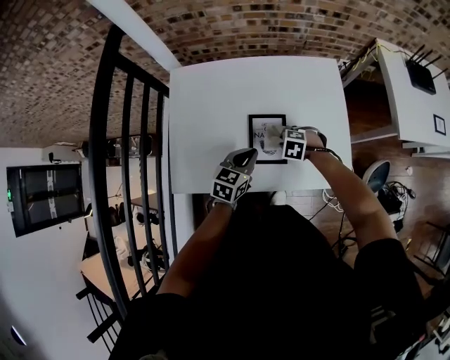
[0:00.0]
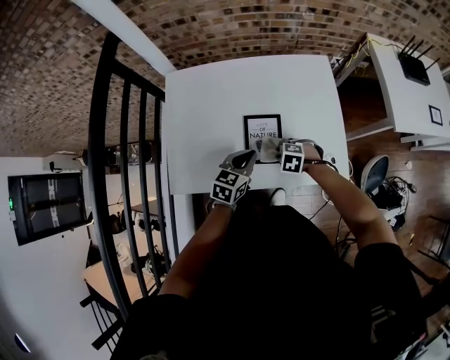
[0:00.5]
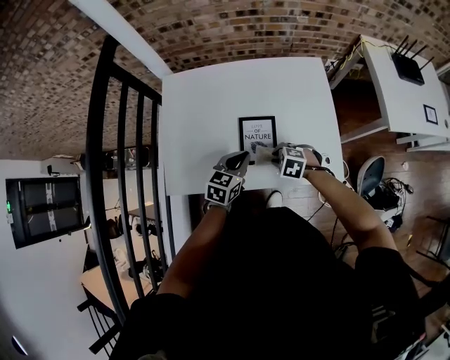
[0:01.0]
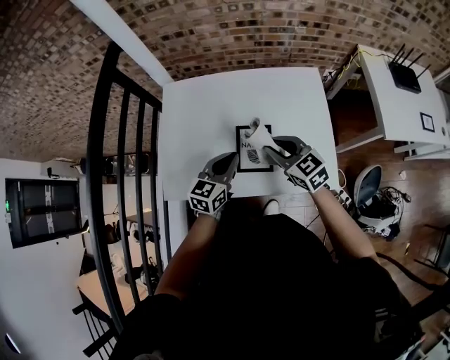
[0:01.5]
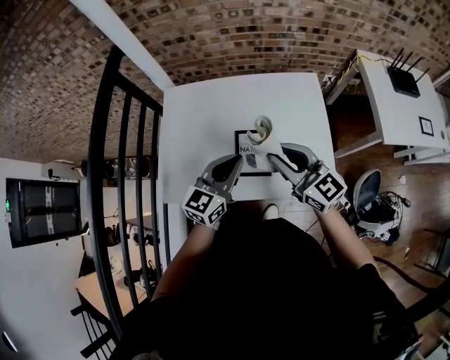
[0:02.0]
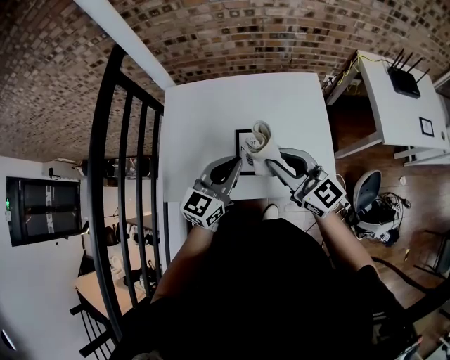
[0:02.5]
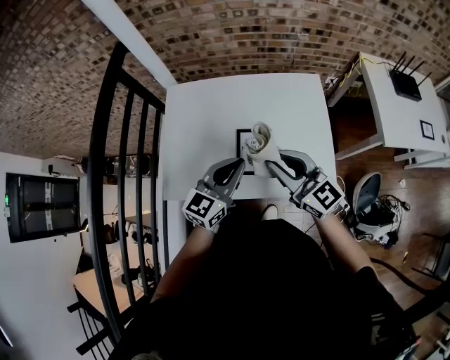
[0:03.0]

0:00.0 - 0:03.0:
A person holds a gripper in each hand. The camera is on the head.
0:00.0 - 0:01.5: The left gripper goes some 10 cm upward; the right gripper is displaced upward by approximately 20 cm, and angles its fingers upward, by approximately 50 degrees.
0:01.5 - 0:03.0: The left gripper travels upward by some 10 cm. The right gripper heads upward and backward, covering about 15 cm, and rotates roughly 30 degrees.

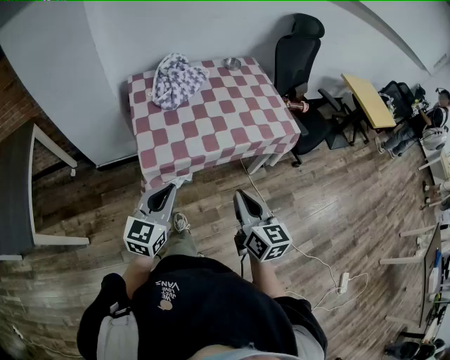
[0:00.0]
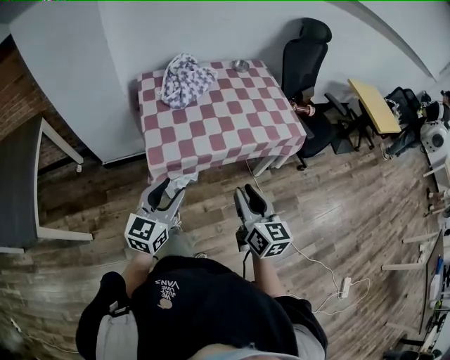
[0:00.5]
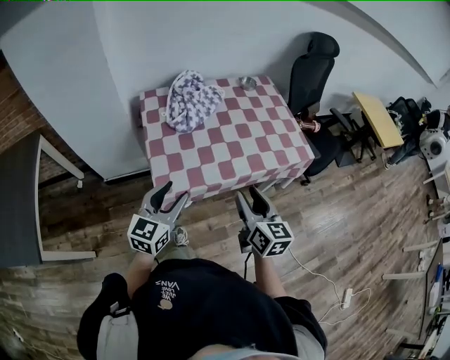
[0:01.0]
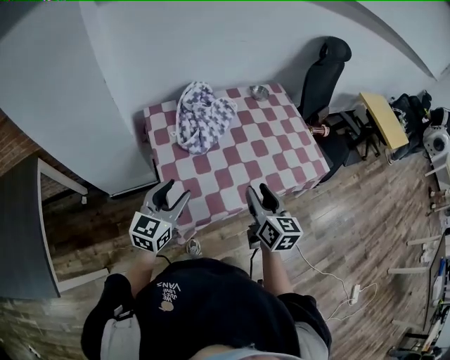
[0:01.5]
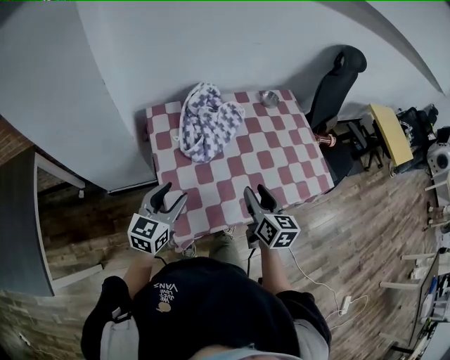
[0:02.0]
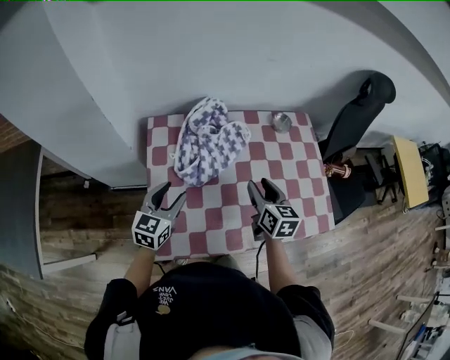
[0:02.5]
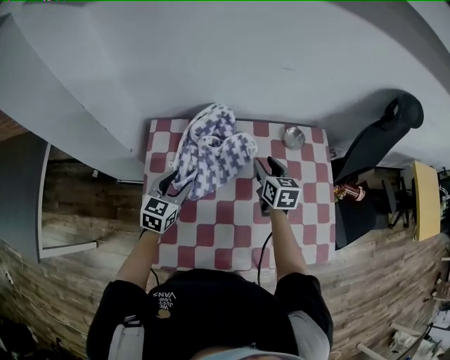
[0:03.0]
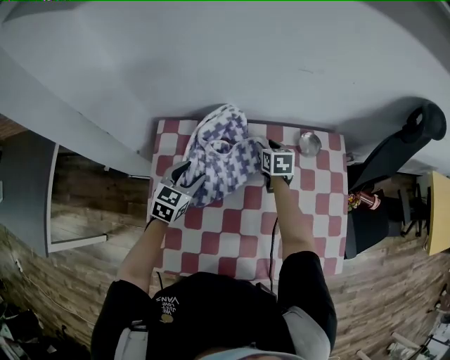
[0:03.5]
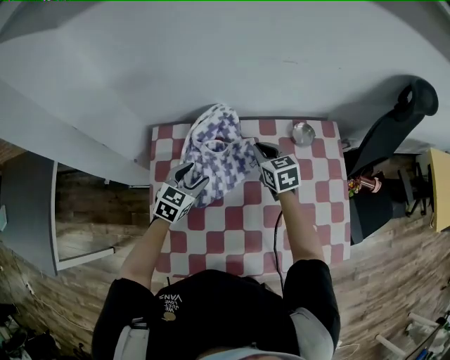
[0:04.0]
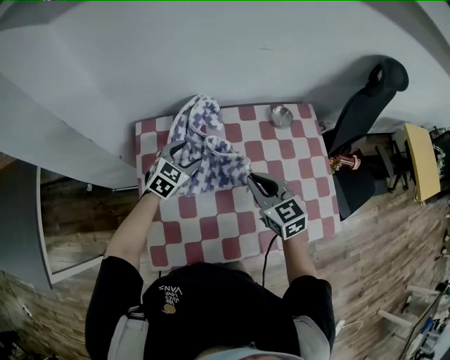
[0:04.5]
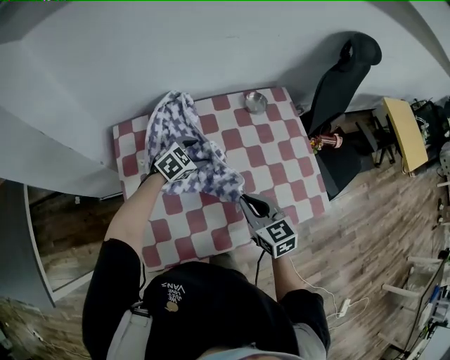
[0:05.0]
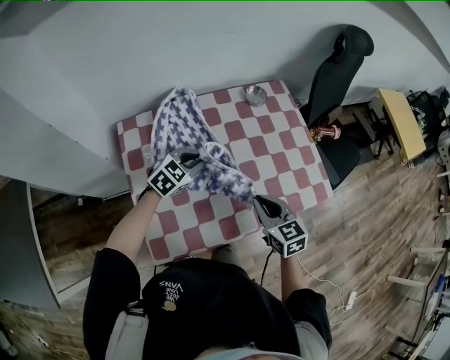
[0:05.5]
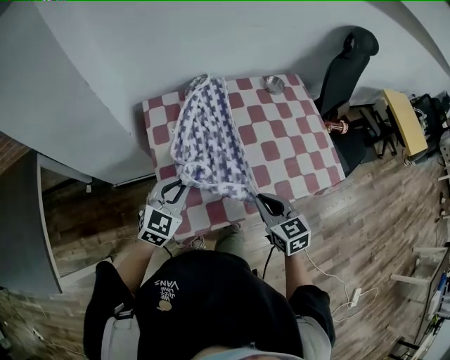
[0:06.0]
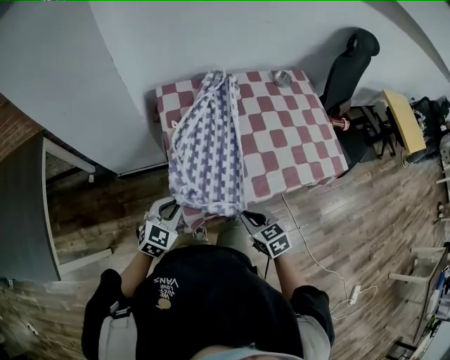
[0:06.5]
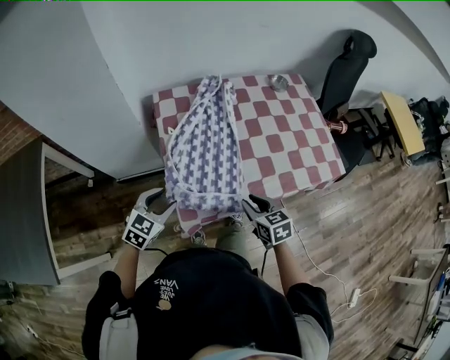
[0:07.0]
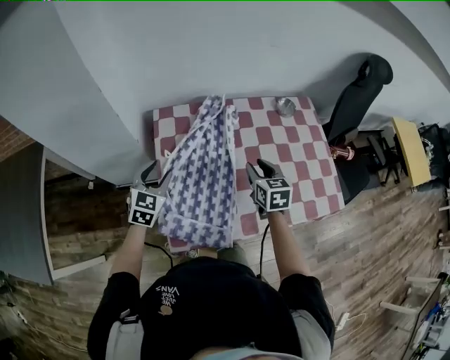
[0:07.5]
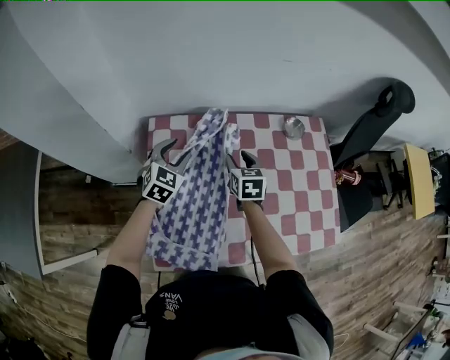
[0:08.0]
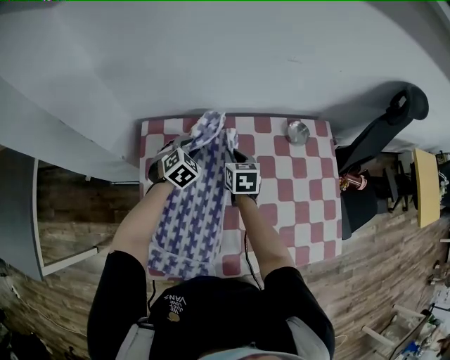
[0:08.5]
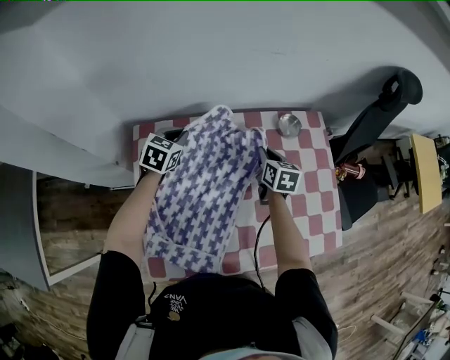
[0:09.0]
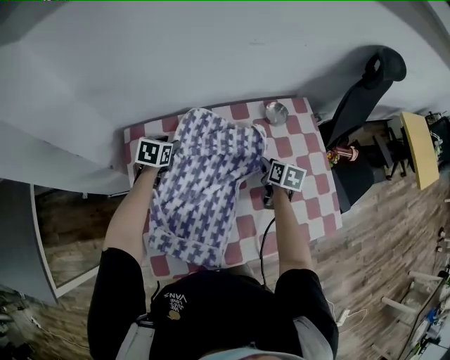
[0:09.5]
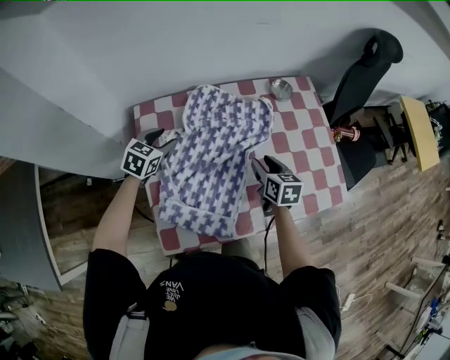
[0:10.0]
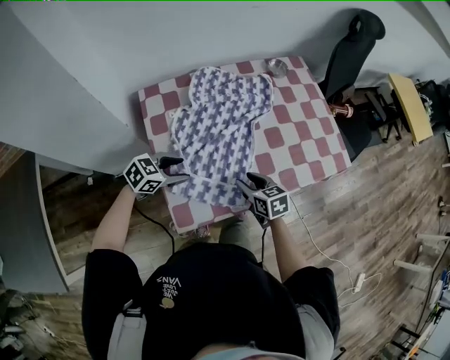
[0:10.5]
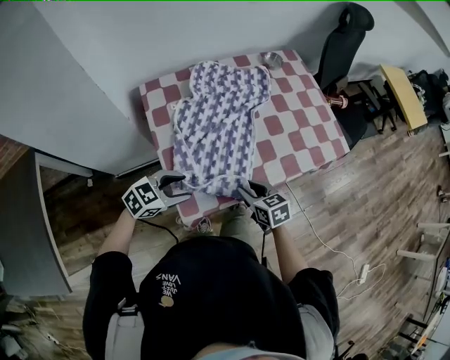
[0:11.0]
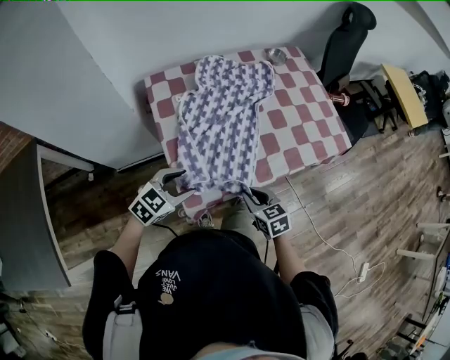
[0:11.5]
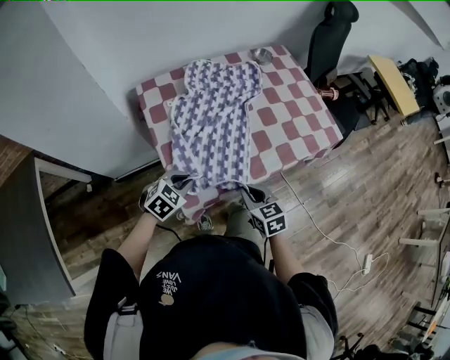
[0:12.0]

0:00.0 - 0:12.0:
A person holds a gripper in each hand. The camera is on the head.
0:00.0 - 0:02.0: The left gripper heads forward and to the left, covering some 30 cm, and opens, while the right gripper is displaced forward by approximately 30 cm, and opens.
0:02.0 - 0:04.0: The left gripper goes approximately 25 cm forward and downward, and rotates approximately 20 degrees; the right gripper shifts about 35 cm forward, rotates roughly 40 degrees, and closes its fingers.
0:04.0 - 0:06.0: The left gripper heads backward, covering roughly 25 cm, rotates roughly 20 degrees, and closes up. Meanwhile the right gripper travels backward by roughly 40 cm.
0:06.0 - 0:08.0: The two grippers go some 30 cm forward. The left gripper opens up. The right gripper opens.
0:08.0 - 0:10.0: The left gripper is displaced backward by some 5 cm, rotates some 20 degrees, and closes, then opens again. The right gripper moves backward and to the right, approximately 15 cm, and closes, then reopens.
0:10.0 - 0:12.0: The two grippers go roughly 30 cm backward. The right gripper closes. Meanwhile the left gripper changes its angle by some 30 degrees, and closes its fingers.

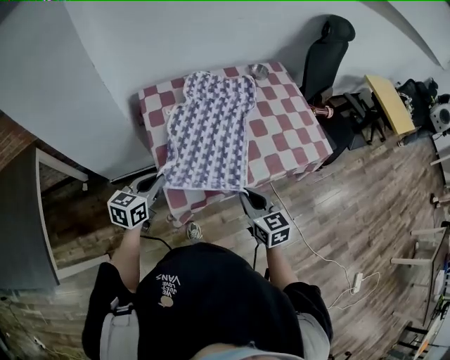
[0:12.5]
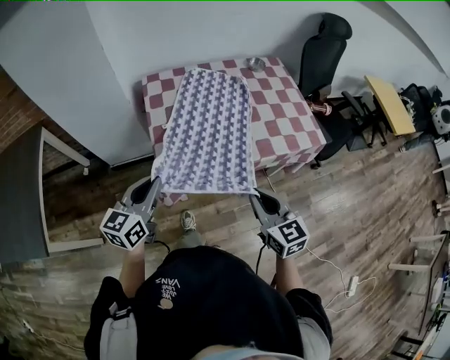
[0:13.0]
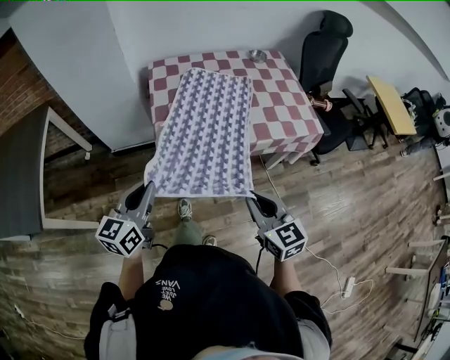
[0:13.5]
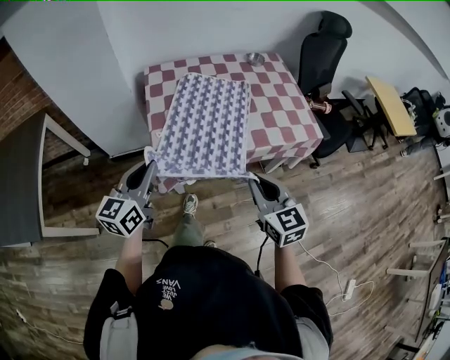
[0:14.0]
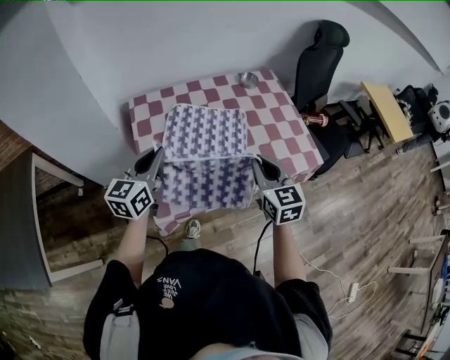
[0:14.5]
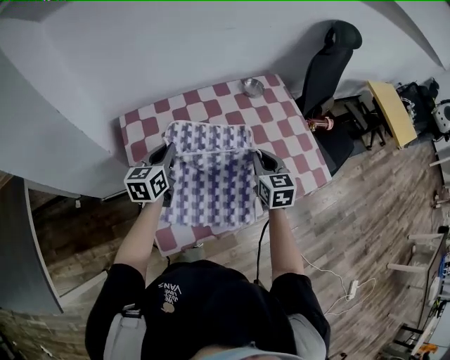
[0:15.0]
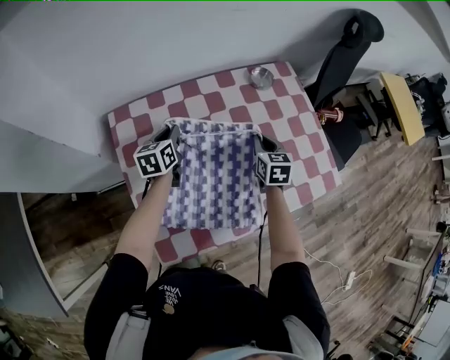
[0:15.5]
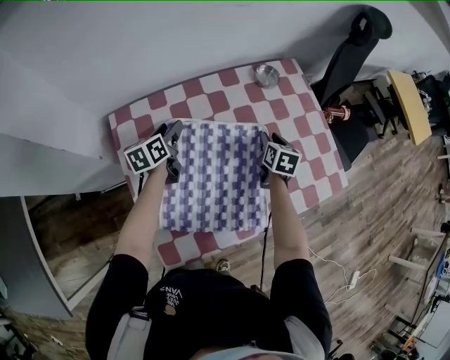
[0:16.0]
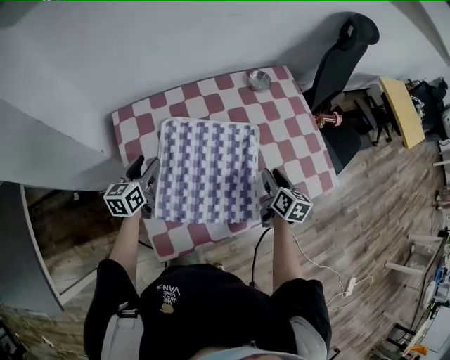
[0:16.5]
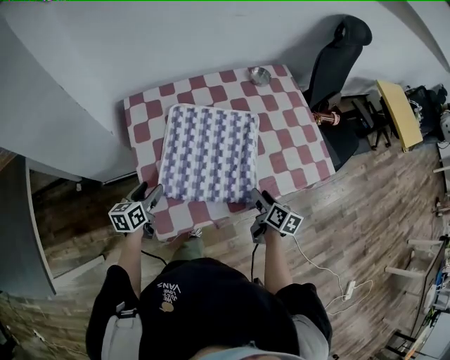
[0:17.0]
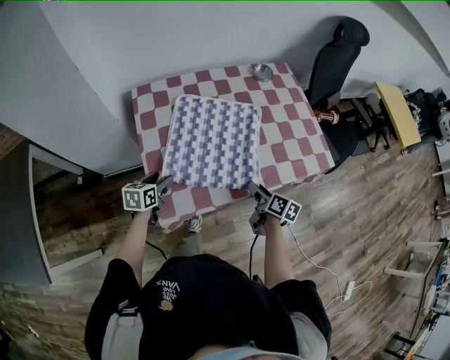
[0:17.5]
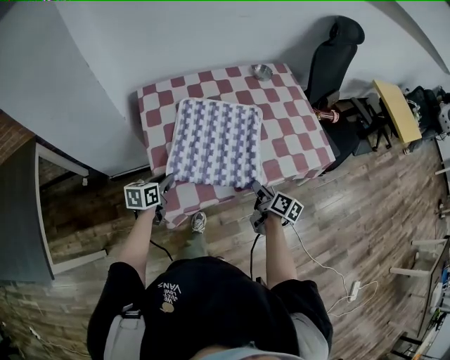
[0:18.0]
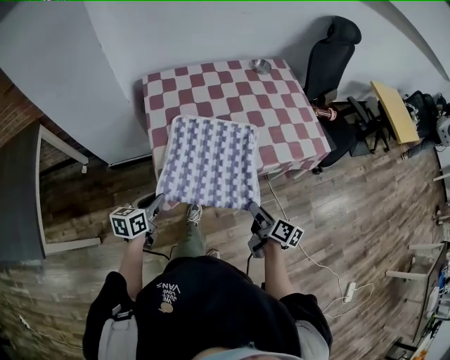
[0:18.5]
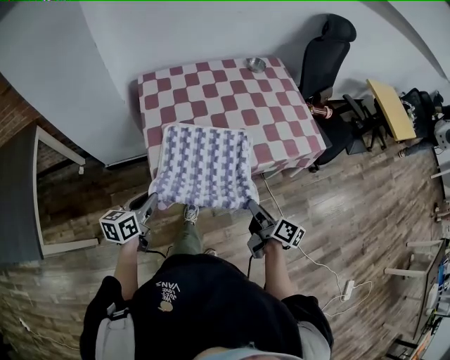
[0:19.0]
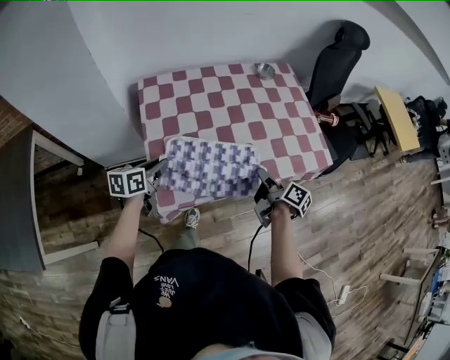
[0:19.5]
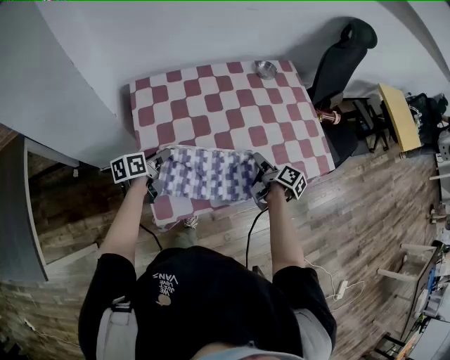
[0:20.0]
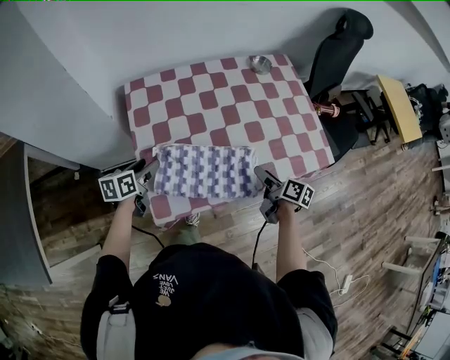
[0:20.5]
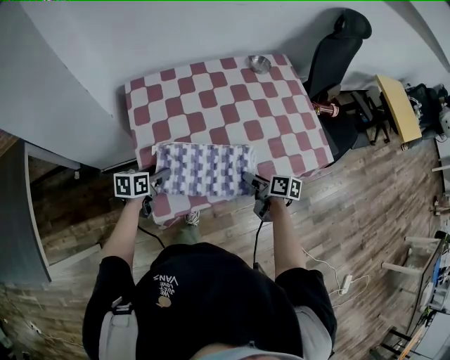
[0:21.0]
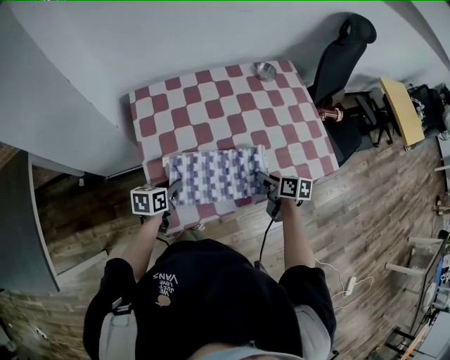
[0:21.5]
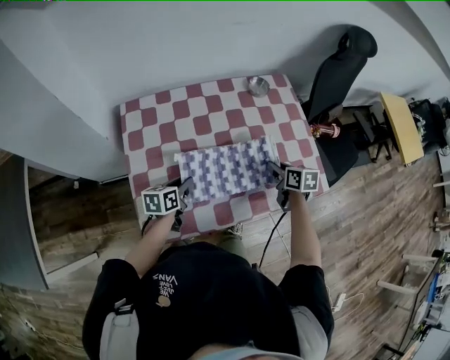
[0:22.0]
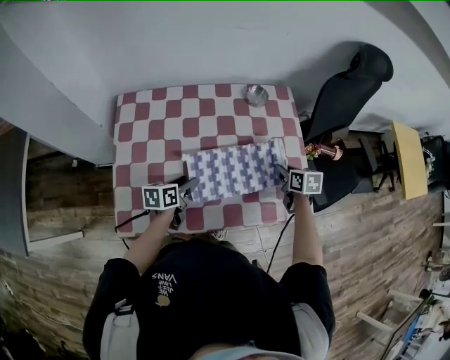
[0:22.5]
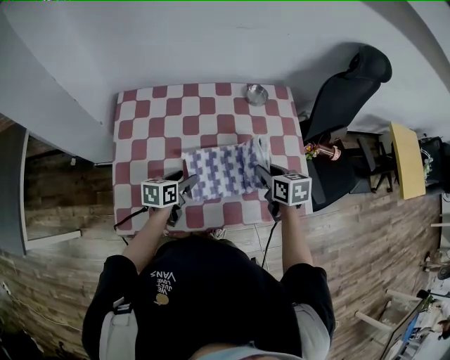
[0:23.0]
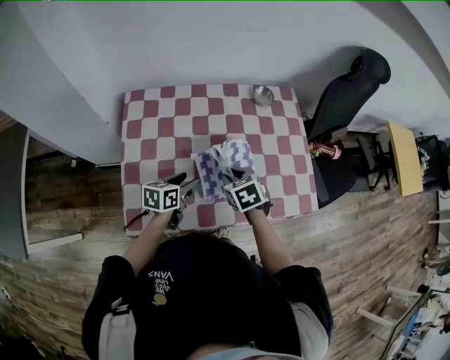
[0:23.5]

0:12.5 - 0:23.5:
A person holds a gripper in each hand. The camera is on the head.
0:12.5 - 0:14.5: Both grippers move upward and to the right, approximately 15 cm. The left gripper moves roughly 25 cm backward and comes back; the right gripper reaches some 20 cm backward, then returns.
0:14.5 - 0:16.0: Both grippers move forward and downward, approximately 35 cm. The left gripper turns by about 30 degrees, and opens, while the right gripper rotates roughly 40 degrees, and opens up.
0:16.0 - 0:18.0: Both grippers travel together backward, roughly 30 cm. The left gripper closes its fingers, while the right gripper rotates roughly 40 degrees.
0:18.0 - 0:20.0: Both grippers travel together forward, some 10 cm. The right gripper opens its fingers; the left gripper swivels some 20 degrees.
0:20.0 - 0:21.5: The right gripper rotates some 30 degrees, and closes up. Meanwhile the left gripper heads backward, covering about 5 cm, turns by roughly 20 degrees, and opens, then closes again.
0:21.5 - 0:23.5: The right gripper is displaced forward and upward by approximately 10 cm, travels to the right and back again, about 20 cm each way, and twists approximately 50 degrees counterclockwise, seen from behind, while the left gripper moves to the right, roughly 15 cm, and opens up.
